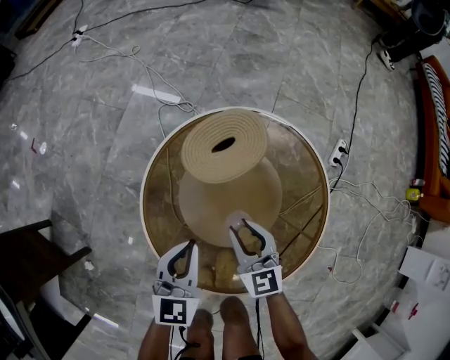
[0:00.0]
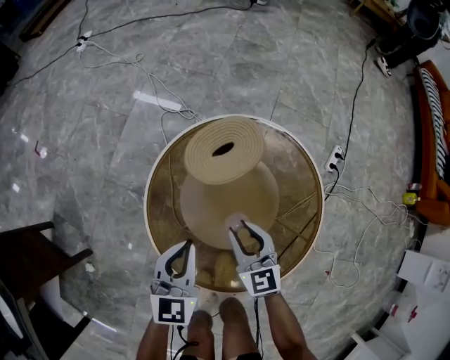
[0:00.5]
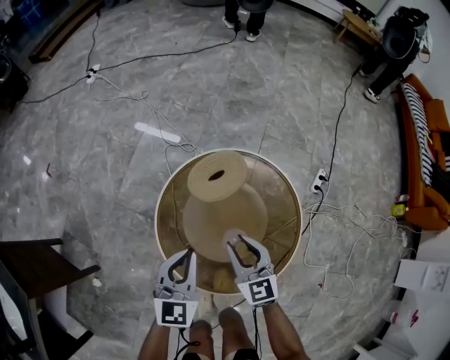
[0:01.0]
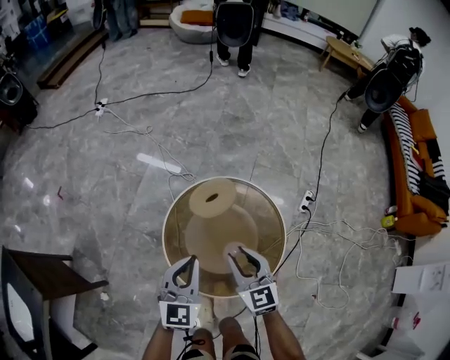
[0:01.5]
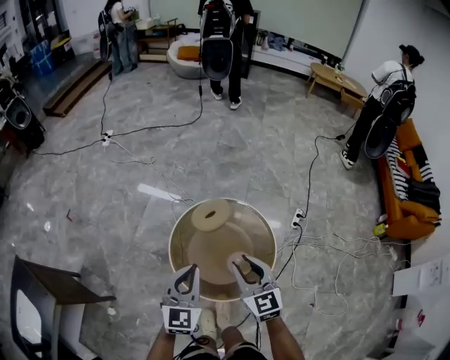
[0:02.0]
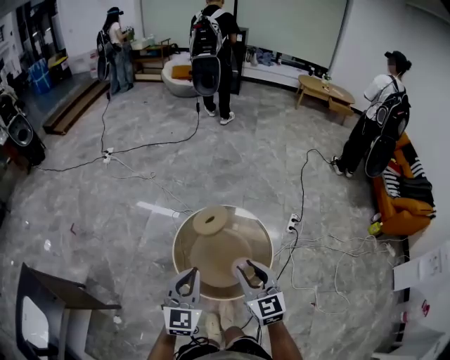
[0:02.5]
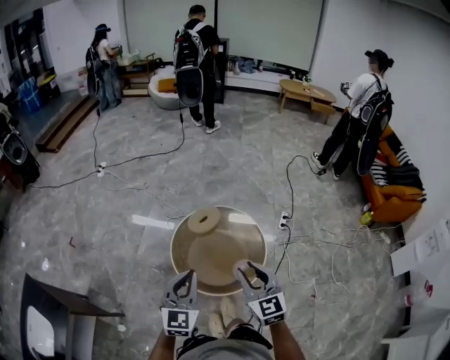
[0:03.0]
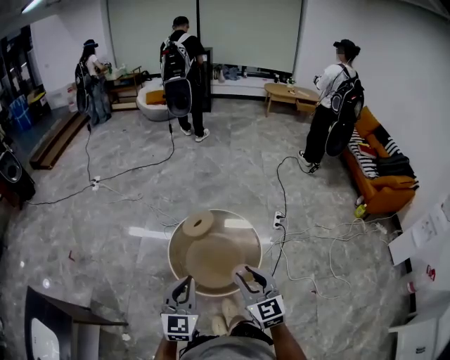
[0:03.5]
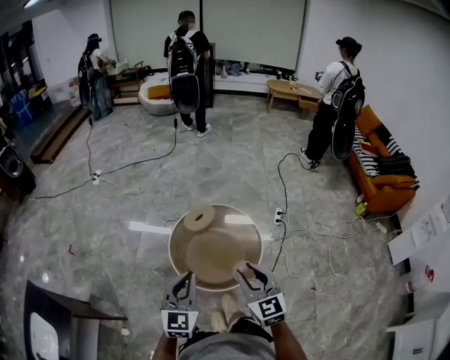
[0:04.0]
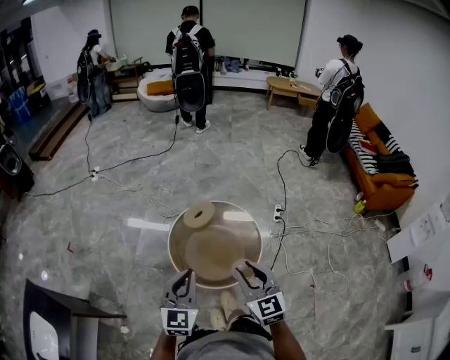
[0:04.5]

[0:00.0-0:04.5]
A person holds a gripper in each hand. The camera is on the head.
0:00.0 to 0:02.0: The grippers both shift upward by roughly 40 cm. The left gripper rotates roughly 20 degrees.
0:02.0 to 0:04.5: Both grippers move backward and upward, about 25 cm.

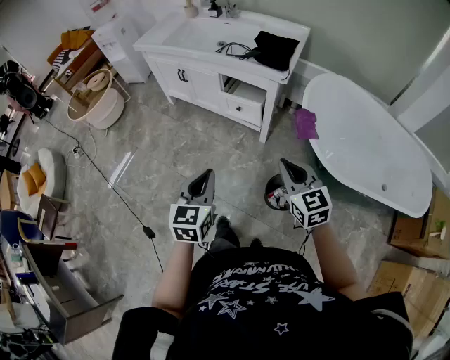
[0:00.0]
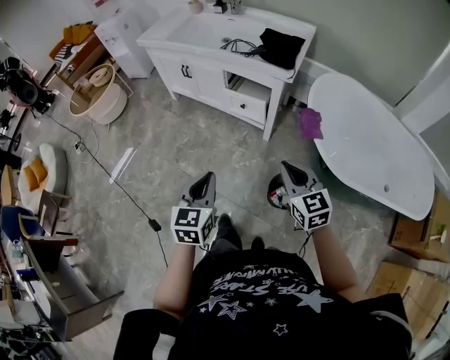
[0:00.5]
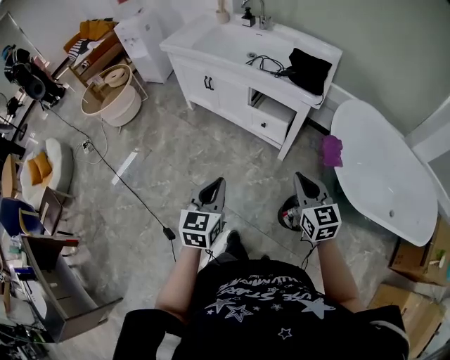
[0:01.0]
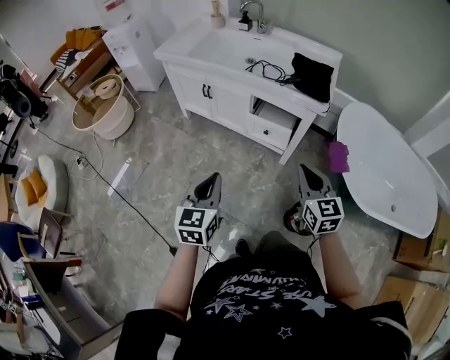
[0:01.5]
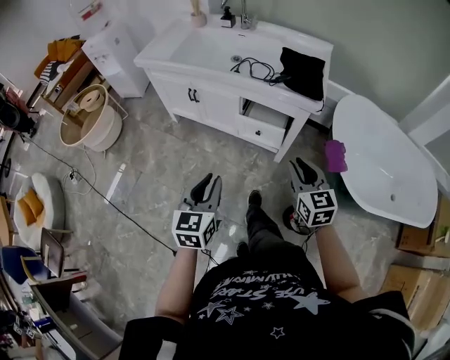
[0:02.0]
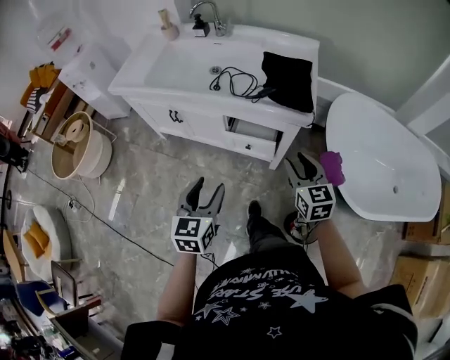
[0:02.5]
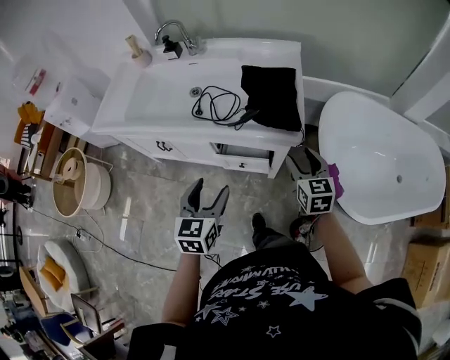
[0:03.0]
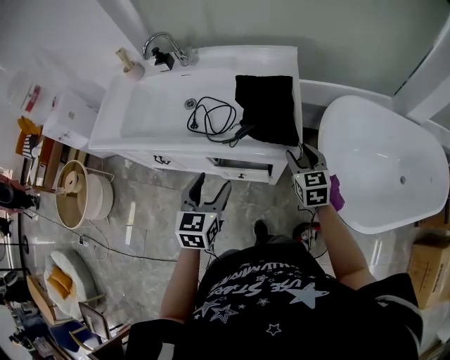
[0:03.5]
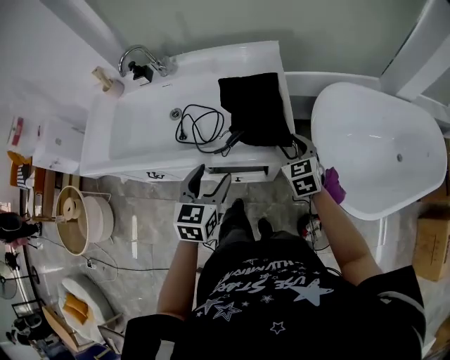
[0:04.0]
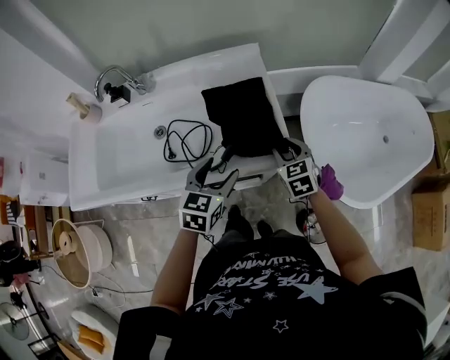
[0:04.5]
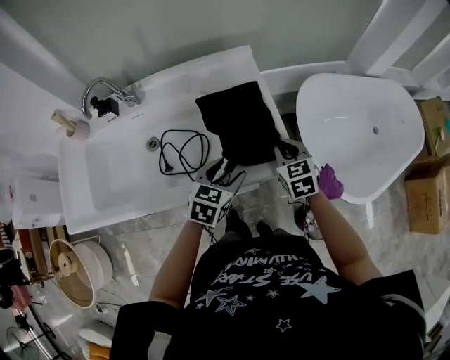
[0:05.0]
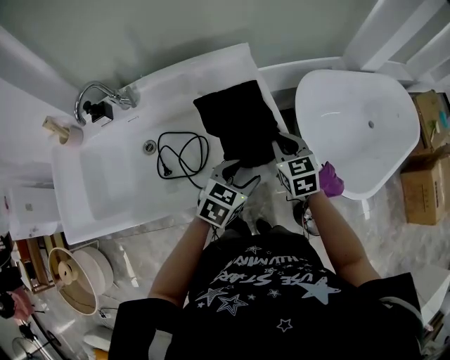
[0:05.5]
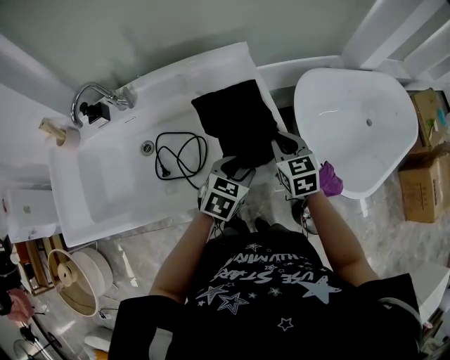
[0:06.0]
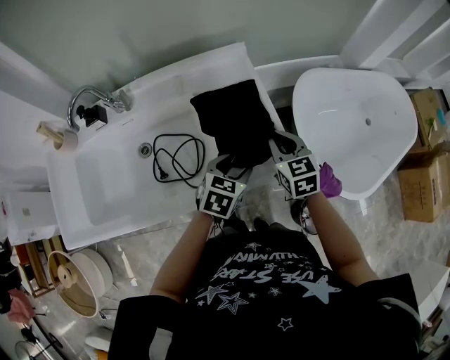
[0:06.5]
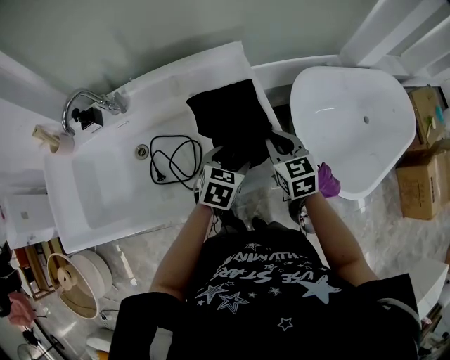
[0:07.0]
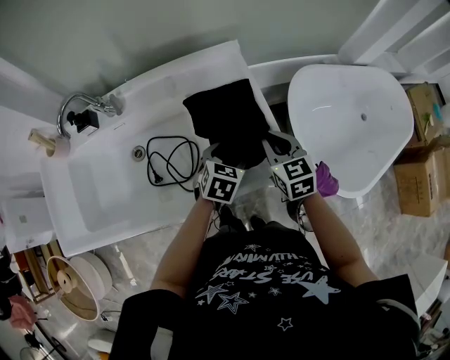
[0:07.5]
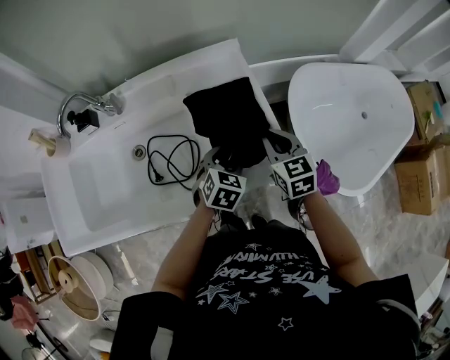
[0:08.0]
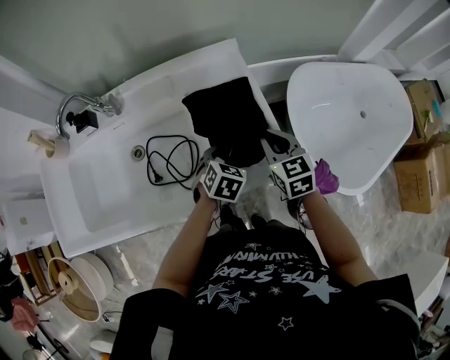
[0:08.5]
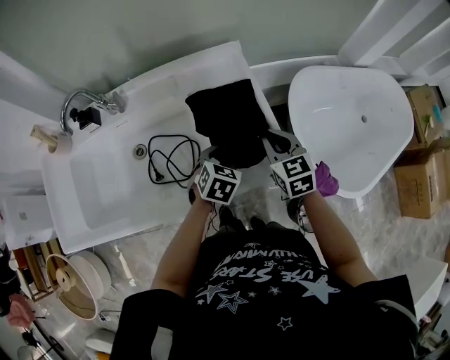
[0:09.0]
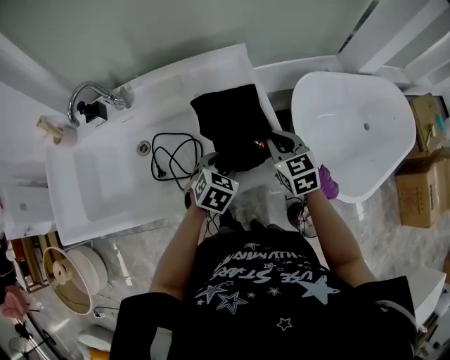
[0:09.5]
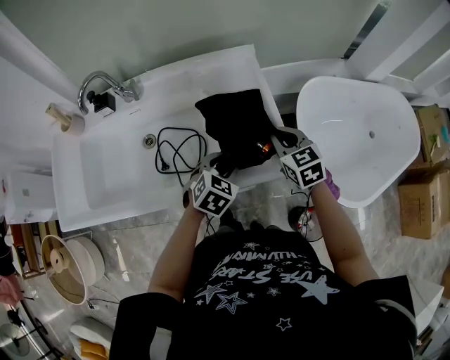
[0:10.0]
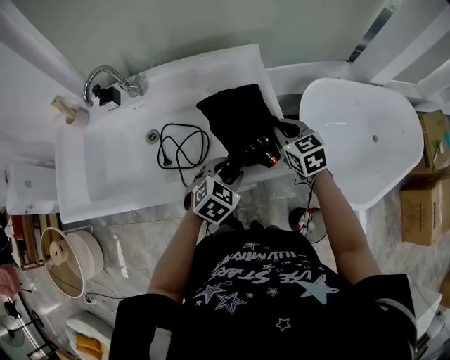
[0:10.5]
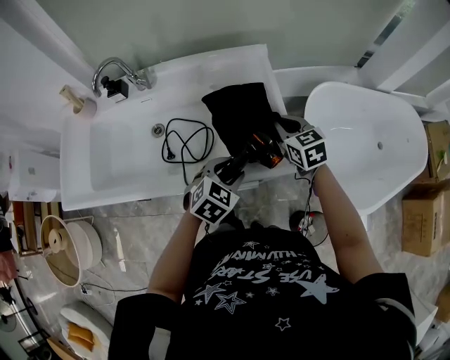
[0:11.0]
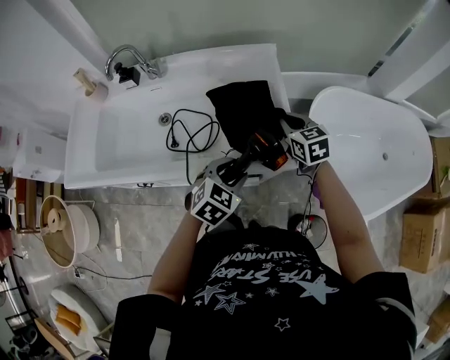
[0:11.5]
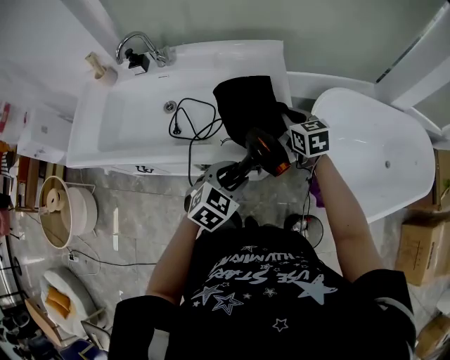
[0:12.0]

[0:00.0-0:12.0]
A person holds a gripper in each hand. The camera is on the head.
0:00.0 to 0:02.0: The two grippers go about 20 cm forward and to the left. The right gripper opens.
0:02.0 to 0:04.0: The two grippers go about 35 cm forward. The right gripper swivels about 20 degrees, and opens. Meanwhile the left gripper swivels roughly 30 degrees, and opens.
0:04.0 to 0:06.0: The left gripper changes place by some 15 cm, and changes its angle by some 40 degrees. The right gripper moves approximately 10 cm, and closes up.
0:06.0 to 0:08.0: The left gripper ends up roughly 5 cm from where it was.
0:08.0 to 0:10.0: The left gripper moves some 5 cm.
0:10.0 to 0:12.0: The left gripper is displaced backward and to the right by roughly 15 cm.

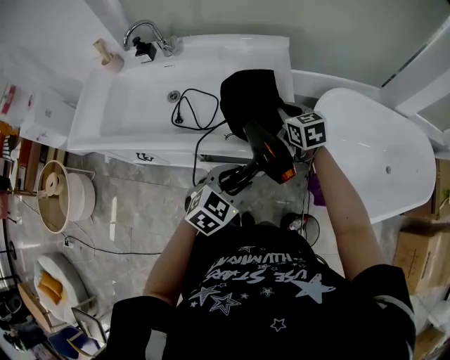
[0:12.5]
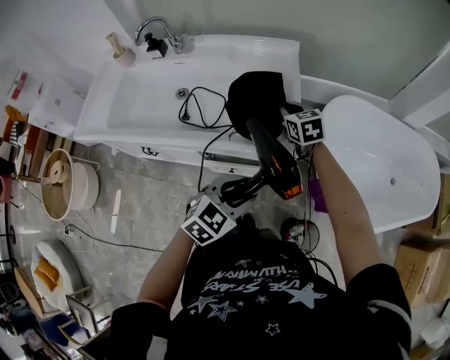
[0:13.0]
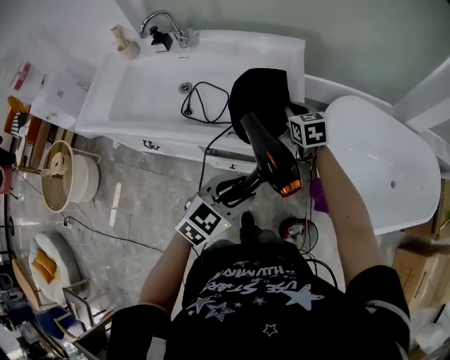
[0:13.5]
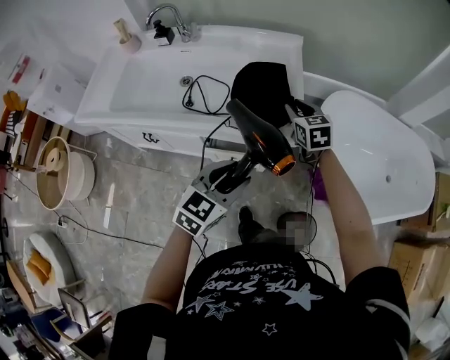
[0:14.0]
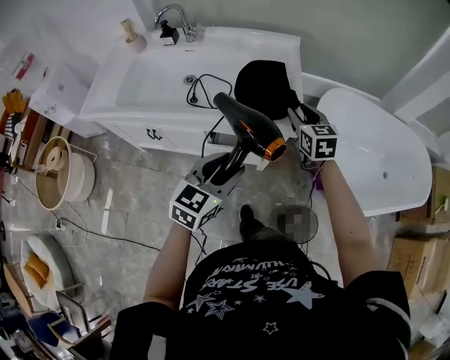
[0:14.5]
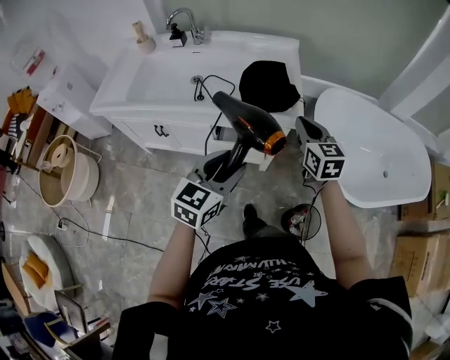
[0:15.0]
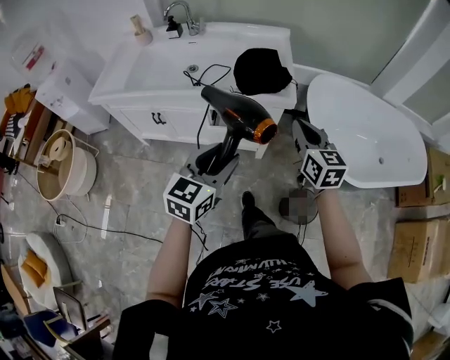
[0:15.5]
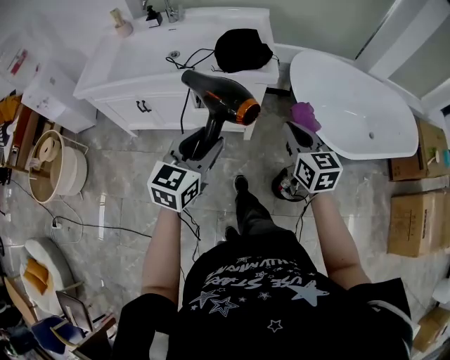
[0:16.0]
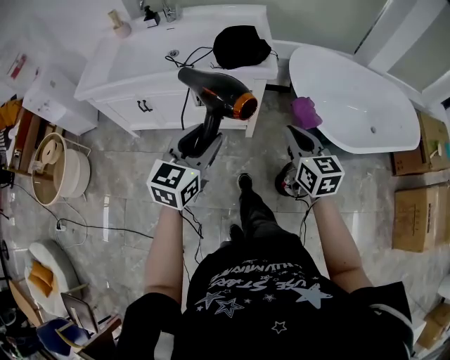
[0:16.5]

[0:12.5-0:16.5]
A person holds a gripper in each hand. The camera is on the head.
0:12.5 to 0:14.5: The right gripper heads backward, covering about 10 cm, and opens up; the left gripper heads backward and upward, covering some 10 cm, and changes its angle by roughly 20 degrees.
0:14.5 to 0:16.5: The right gripper moves backward, roughly 30 cm, and closes up; the left gripper heads backward, covering approximately 15 cm.

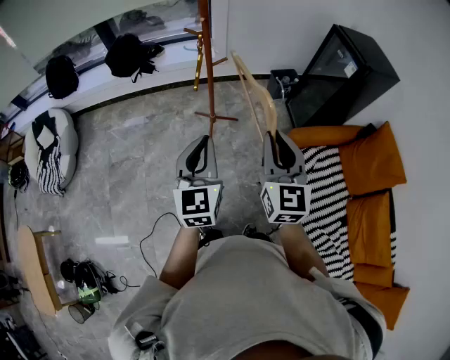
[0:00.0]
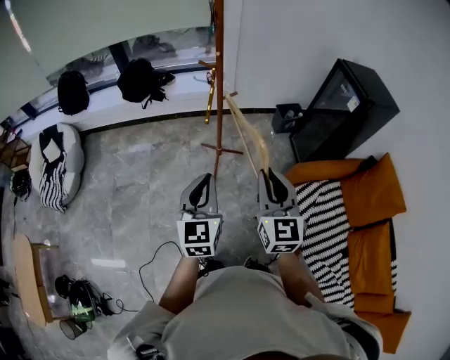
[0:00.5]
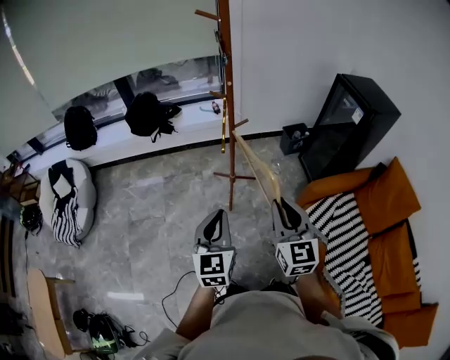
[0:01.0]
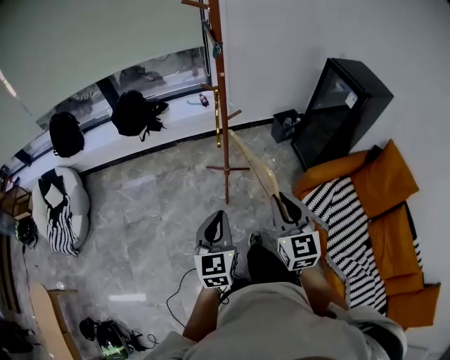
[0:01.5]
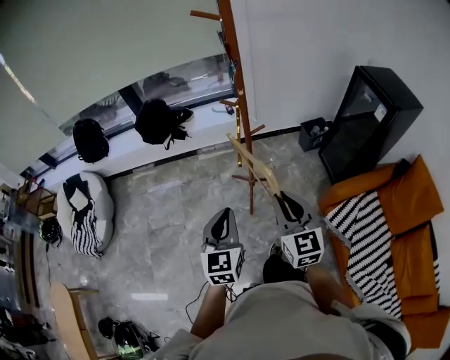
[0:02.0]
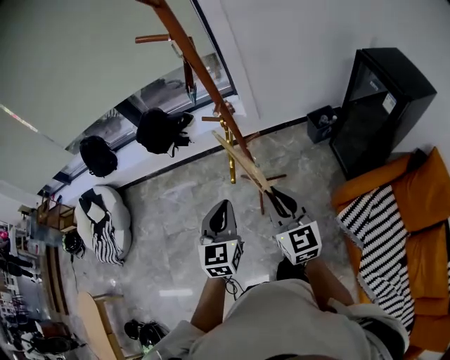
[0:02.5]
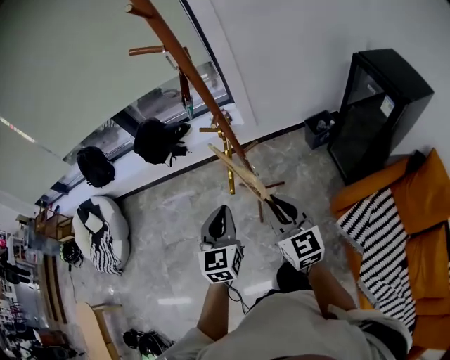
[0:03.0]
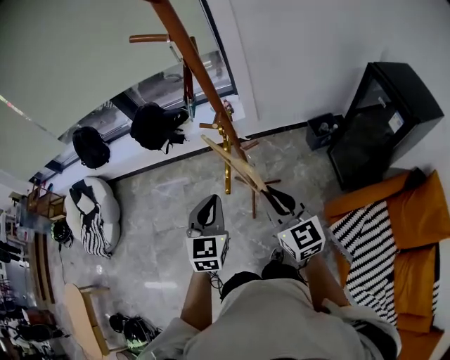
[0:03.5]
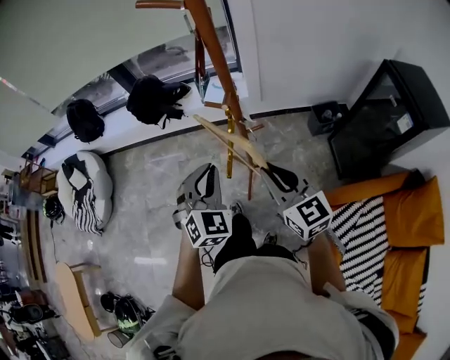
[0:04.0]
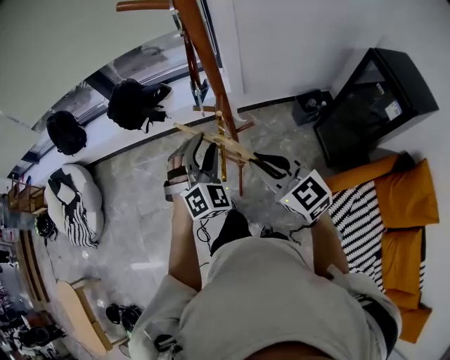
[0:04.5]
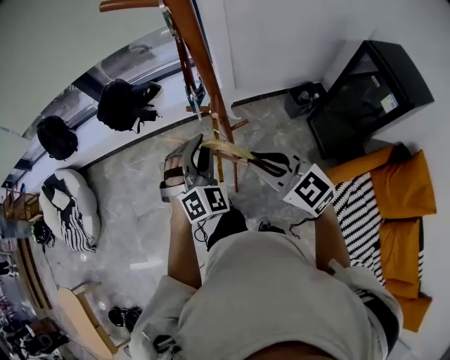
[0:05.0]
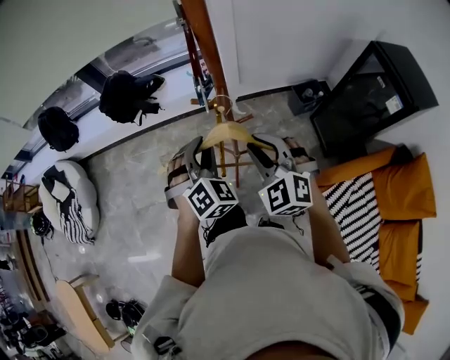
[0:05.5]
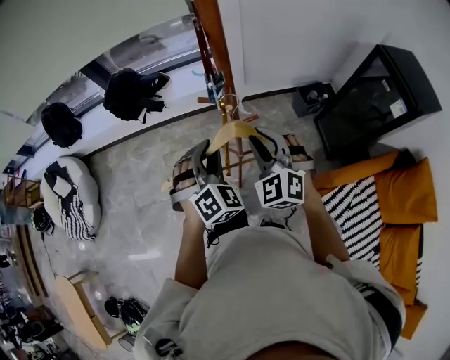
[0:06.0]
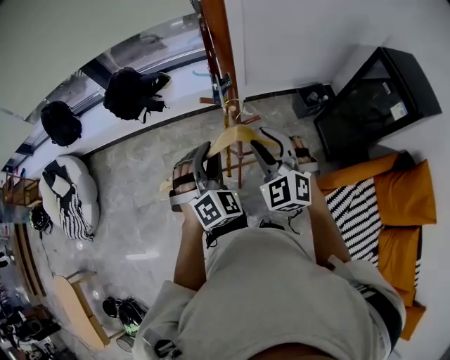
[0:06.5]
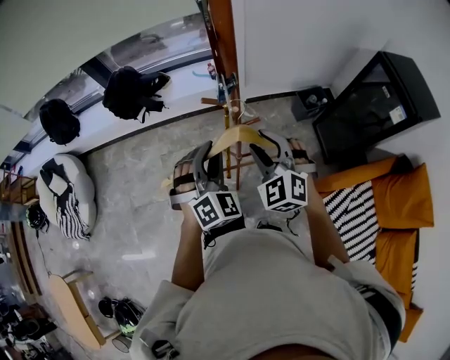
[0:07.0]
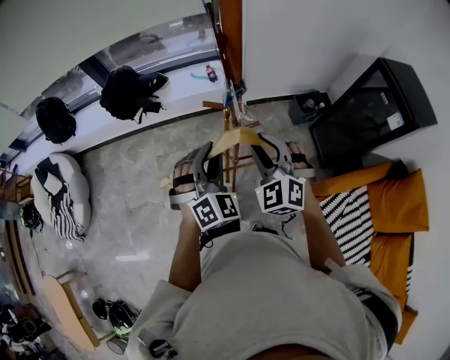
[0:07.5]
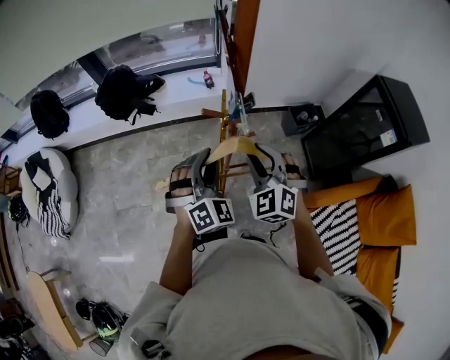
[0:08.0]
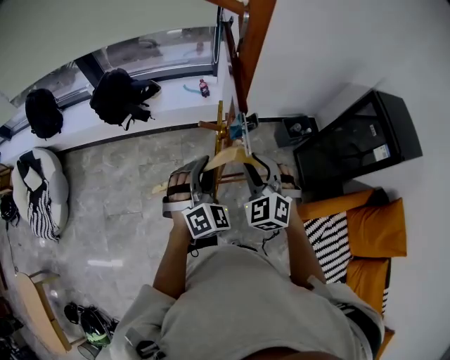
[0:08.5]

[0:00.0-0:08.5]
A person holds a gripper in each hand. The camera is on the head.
0:00.0 to 0:02.0: The grippers both shift to the left, forward and downward by some 15 cm.
0:02.0 to 0:04.0: Both grippers move forward, some 20 cm. The right gripper changes its angle by about 20 degrees; the left gripper changes its angle by some 40 degrees.
0:04.0 to 0:06.5: The two grippers go about 10 cm forward. The right gripper rolls counterclockwise, seen from behind, by about 40 degrees, and opens. The left gripper opens.
0:06.5 to 0:08.5: The right gripper ends up about 5 cm from where it was.
